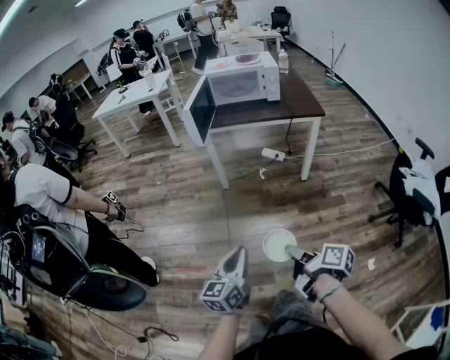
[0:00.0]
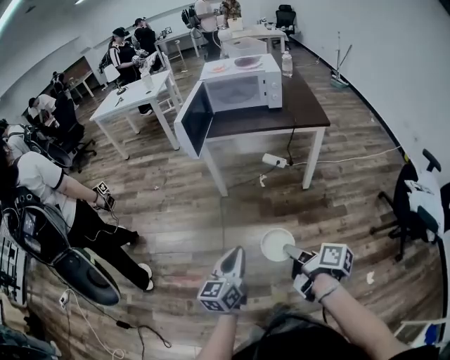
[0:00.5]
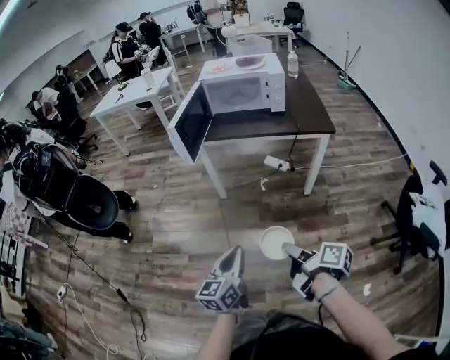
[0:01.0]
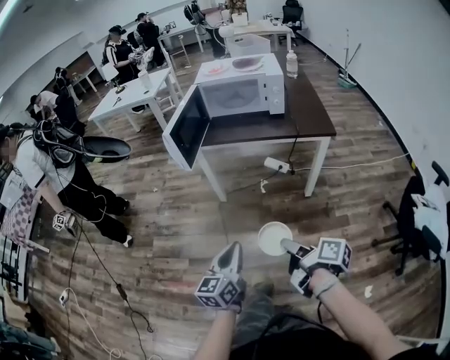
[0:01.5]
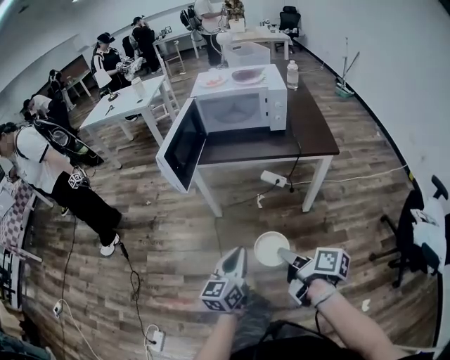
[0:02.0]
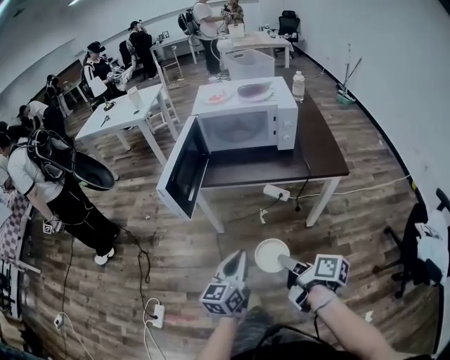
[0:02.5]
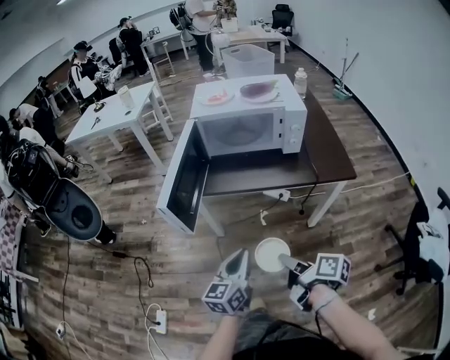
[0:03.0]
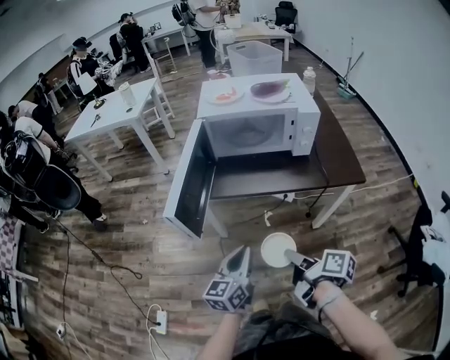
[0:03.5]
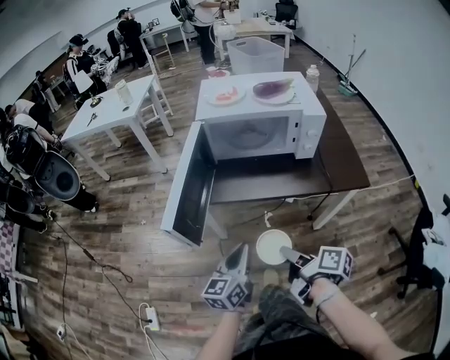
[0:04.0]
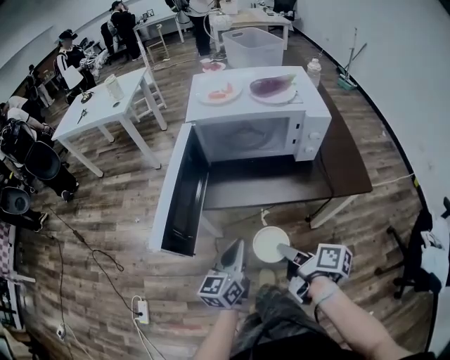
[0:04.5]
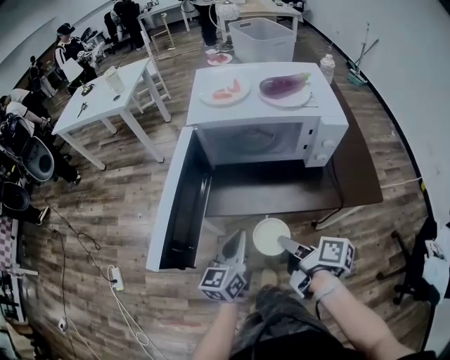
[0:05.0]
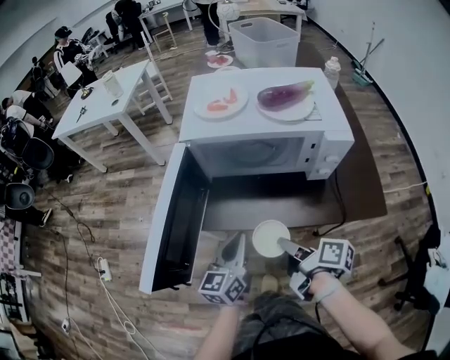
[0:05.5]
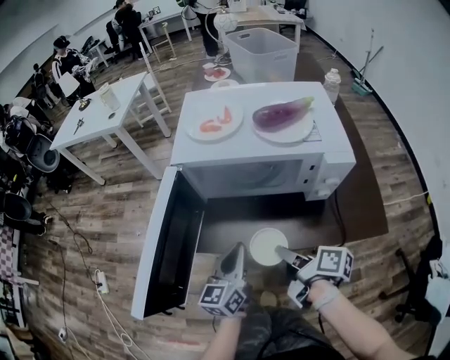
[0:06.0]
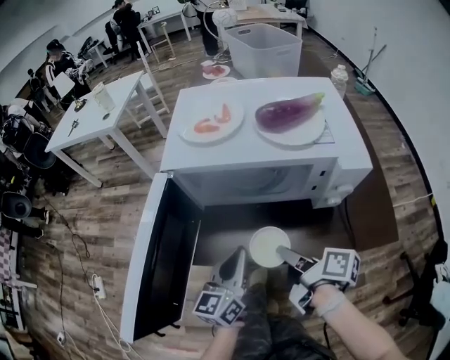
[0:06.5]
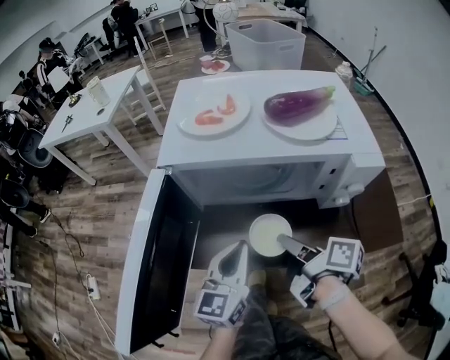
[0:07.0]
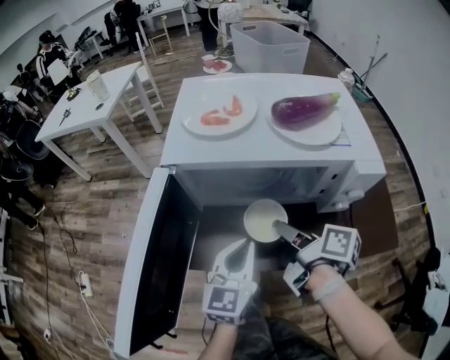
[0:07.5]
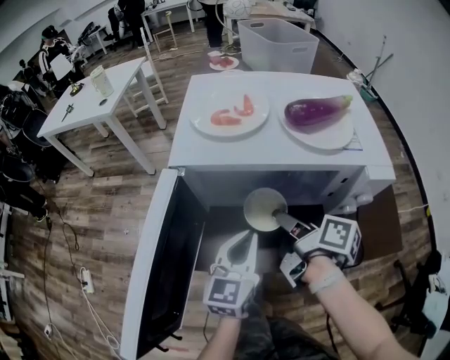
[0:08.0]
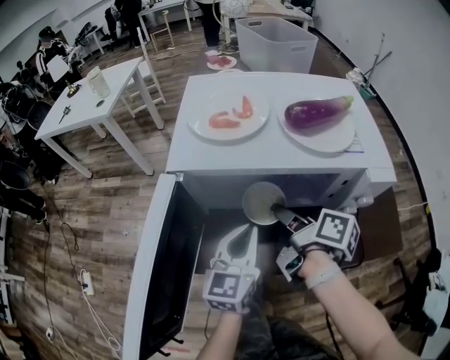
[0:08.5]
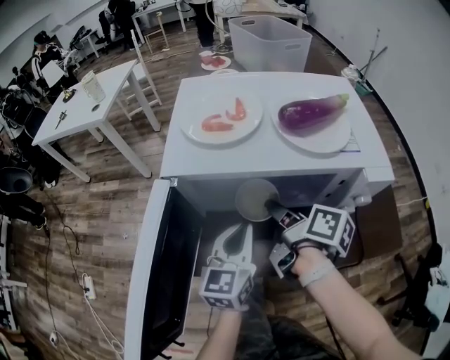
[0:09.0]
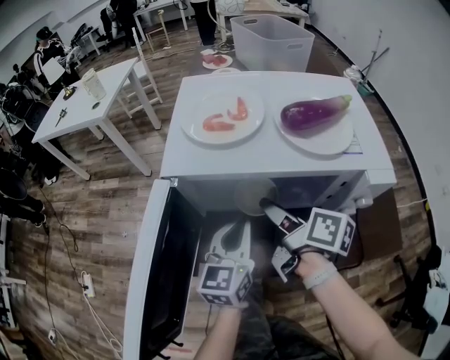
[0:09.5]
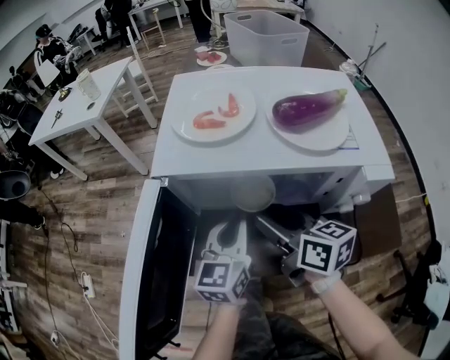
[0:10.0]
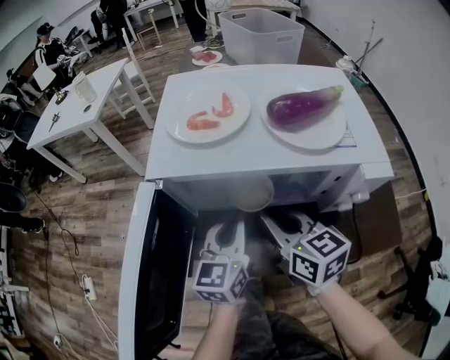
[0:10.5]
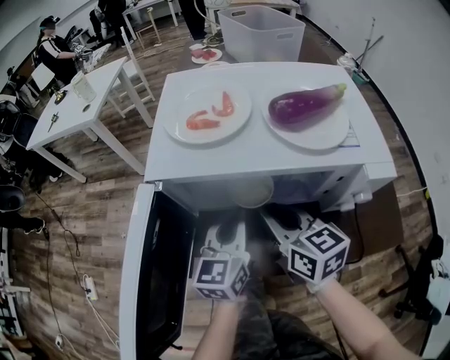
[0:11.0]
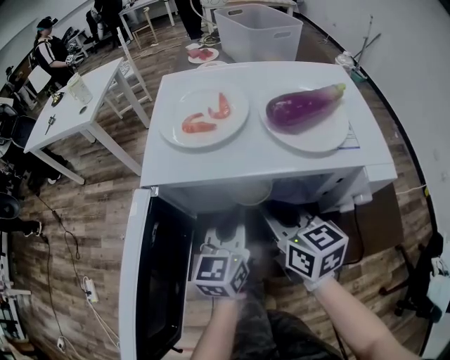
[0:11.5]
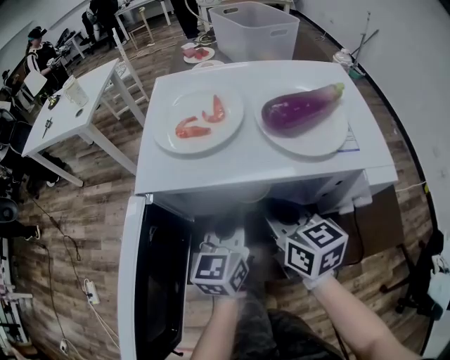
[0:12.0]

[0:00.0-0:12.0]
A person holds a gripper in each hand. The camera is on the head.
0:00.0 to 0:02.0: The left gripper shifts about 30 cm forward and to the right; the right gripper is displaced forward by about 30 cm.
0:02.0 to 0:04.0: The two grippers go some 25 cm forward.
0:04.0 to 0:06.0: The grippers both shift forward by some 20 cm.
0:06.0 to 0:08.0: The left gripper travels forward by some 10 cm, while the right gripper travels forward by roughly 15 cm.
0:08.0 to 0:10.0: The left gripper goes about 5 cm forward. The right gripper rolls counterclockwise, seen from behind, by some 40 degrees, and opens up.
0:10.0 to 0:12.0: The right gripper closes its fingers.

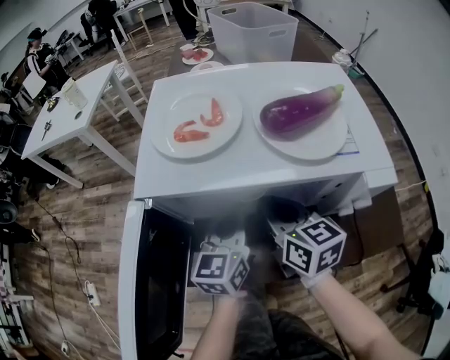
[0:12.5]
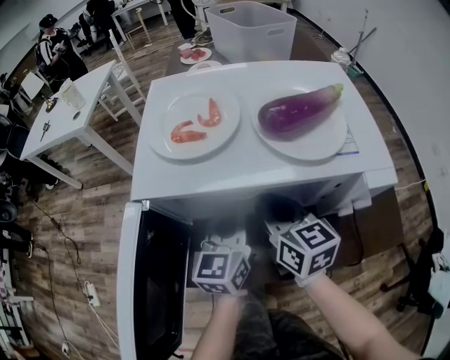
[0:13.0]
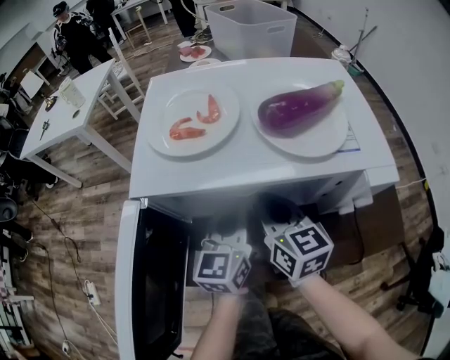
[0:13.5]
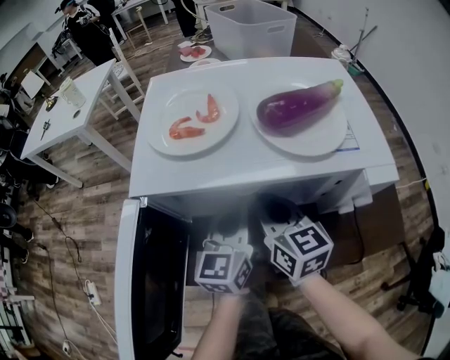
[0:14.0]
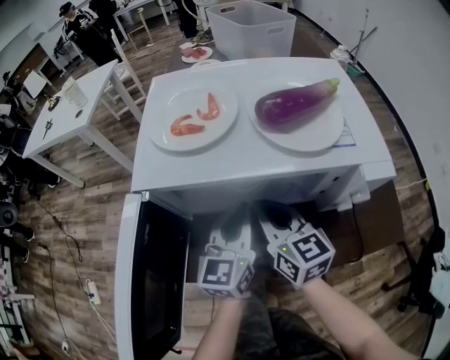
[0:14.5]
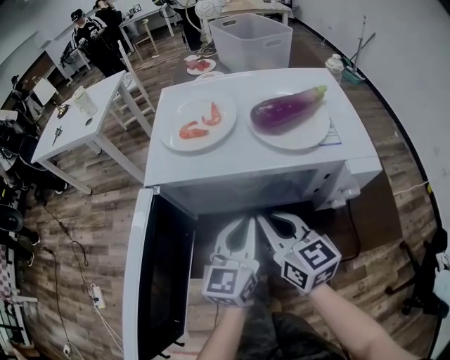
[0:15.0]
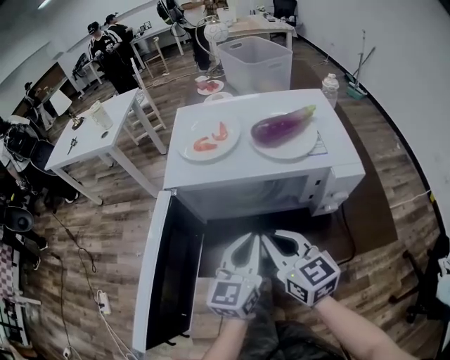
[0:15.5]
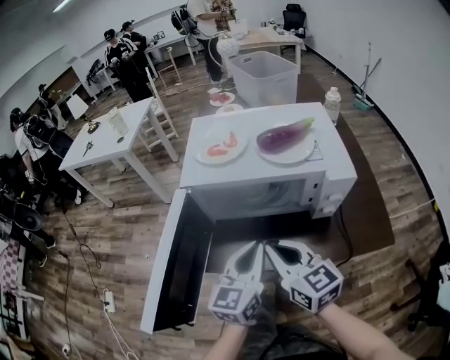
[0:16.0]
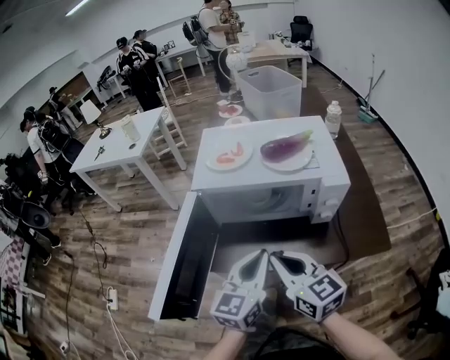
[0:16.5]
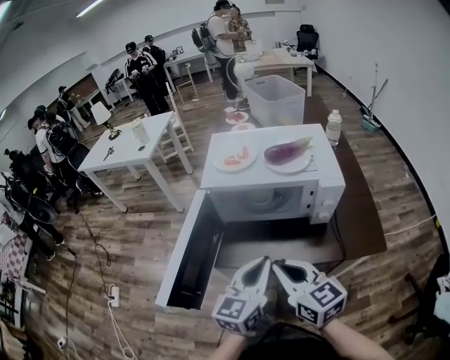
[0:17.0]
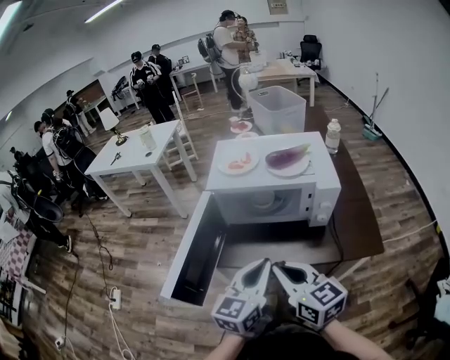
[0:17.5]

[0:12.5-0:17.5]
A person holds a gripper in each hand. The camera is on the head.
0:12.5 to 0:15.0: Both grippers move backward, some 5 cm.
0:15.0 to 0:17.5: The grippers both shift backward and upward by some 25 cm.

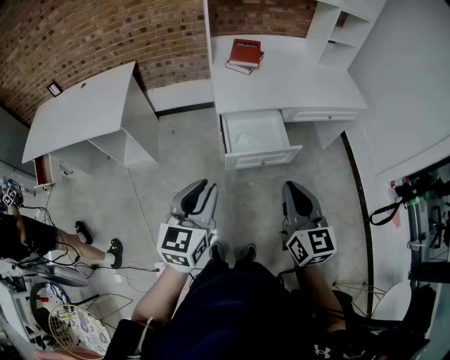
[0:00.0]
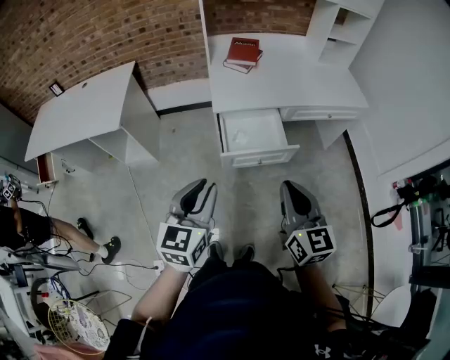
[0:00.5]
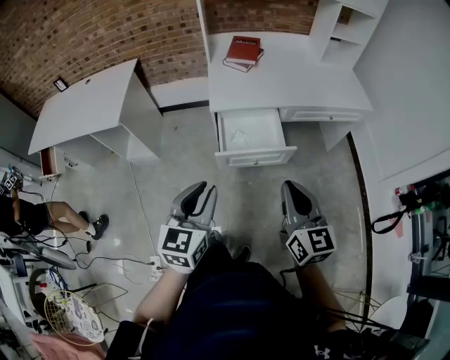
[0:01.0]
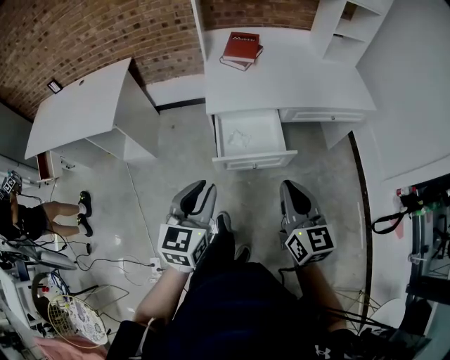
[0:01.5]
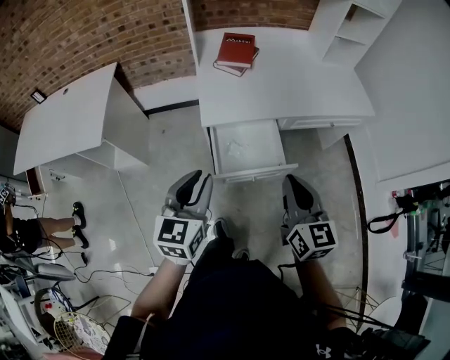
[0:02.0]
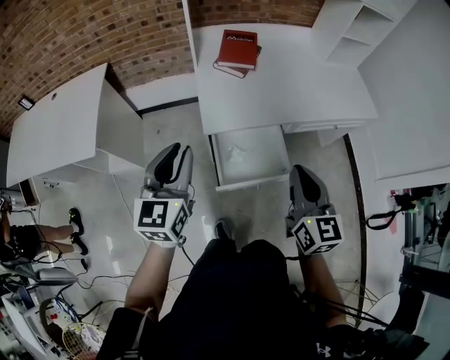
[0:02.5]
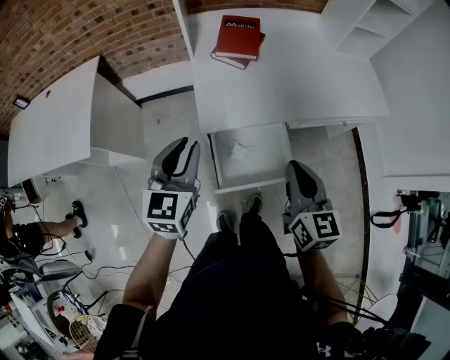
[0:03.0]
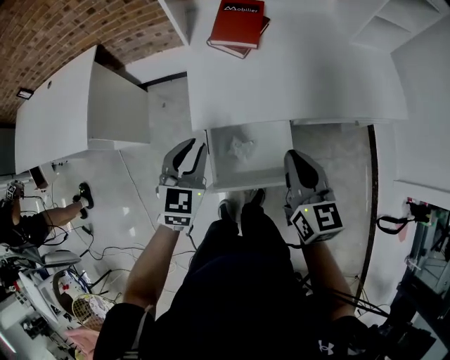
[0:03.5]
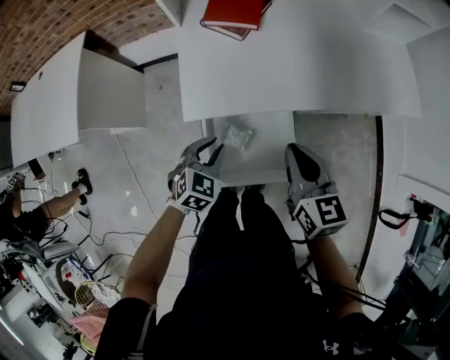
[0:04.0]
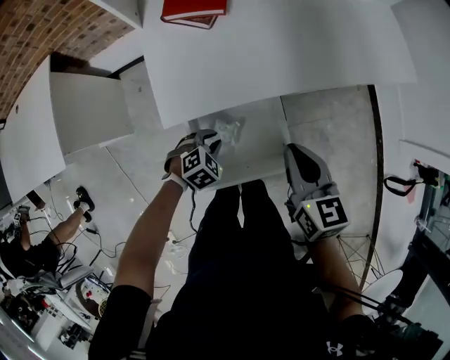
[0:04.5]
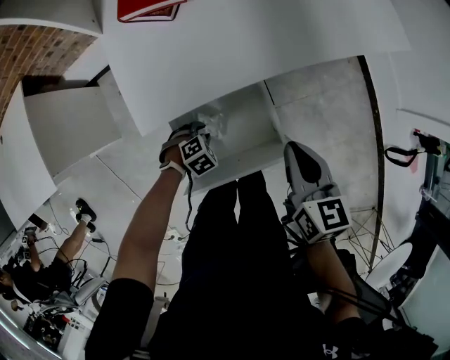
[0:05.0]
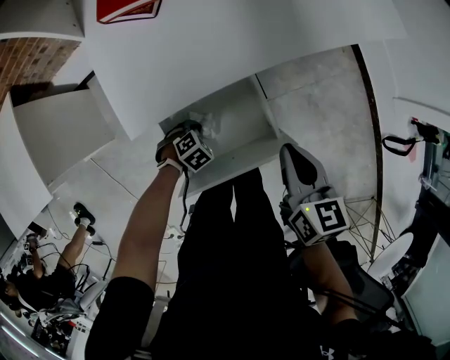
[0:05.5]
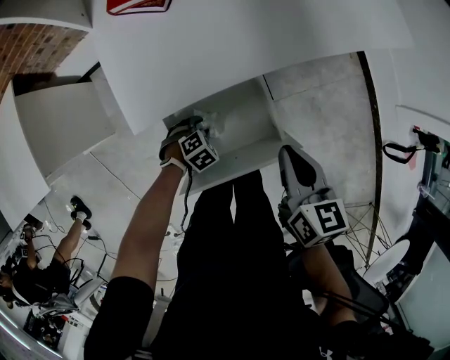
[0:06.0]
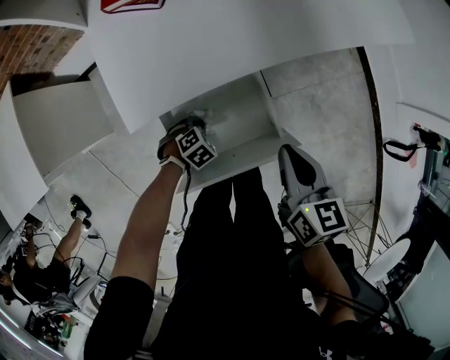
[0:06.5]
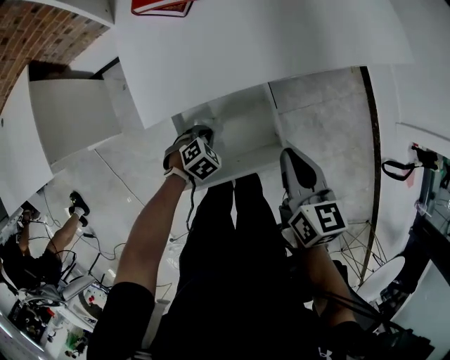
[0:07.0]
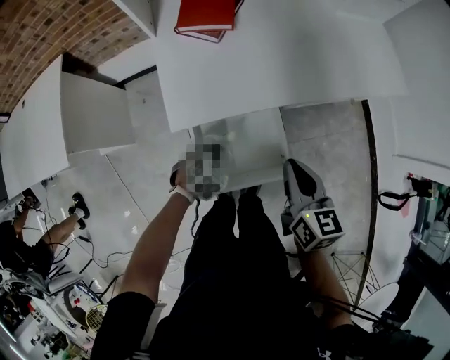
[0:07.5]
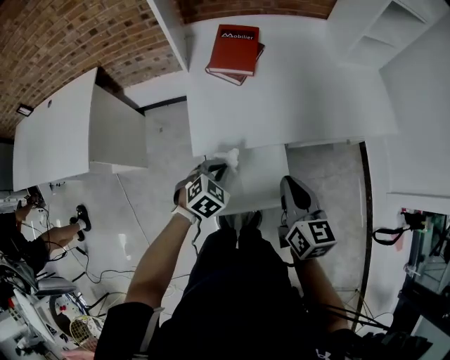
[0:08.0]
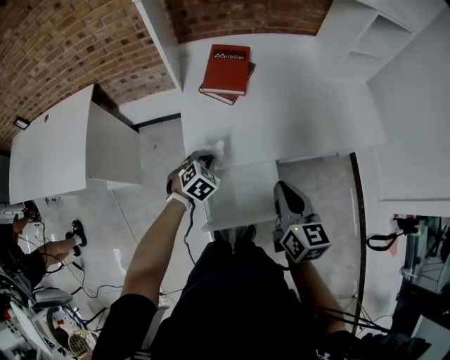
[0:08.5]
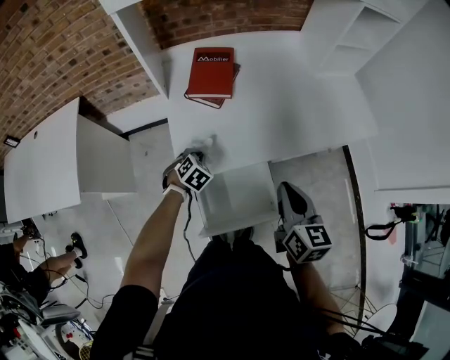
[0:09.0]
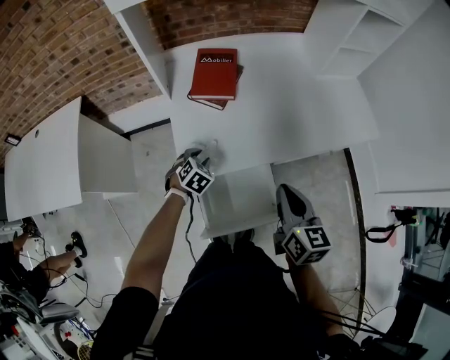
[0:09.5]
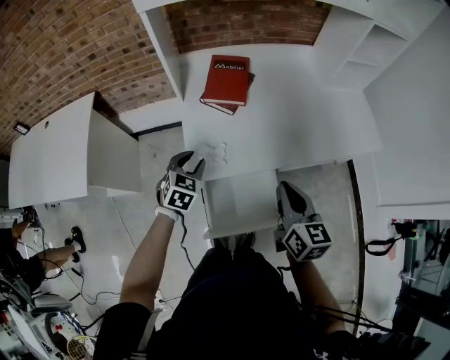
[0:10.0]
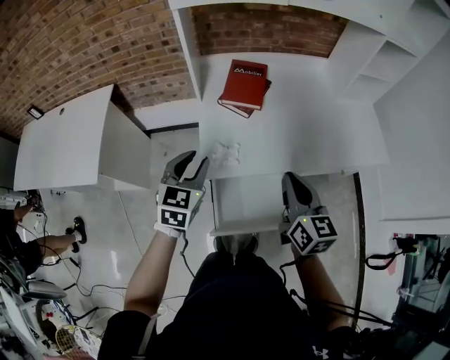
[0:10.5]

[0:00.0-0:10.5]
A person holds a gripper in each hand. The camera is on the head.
0:00.0 to 0:02.0: The grippers both shift forward by roughly 15 cm.
0:02.0 to 0:04.0: The left gripper goes approximately 35 cm downward and forward, and tilts its fingers approximately 30 degrees downward. Meanwhile the right gripper moves forward and downward, roughly 25 cm.
0:04.0 to 0:06.5: The left gripper moves downward, some 25 cm, and tips its fingers downward by approximately 30 degrees. The right gripper shifts about 10 cm downward, and turns by approximately 30 degrees.
0:06.5 to 0:08.5: The left gripper moves upward, some 30 cm, and changes its angle by roughly 30 degrees; the right gripper heads upward, covering approximately 15 cm.
0:08.5 to 0:10.5: The right gripper ends up about 5 cm from where it was; the left gripper heads upward, covering about 20 cm, changes its angle by about 40 degrees, and opens up.
